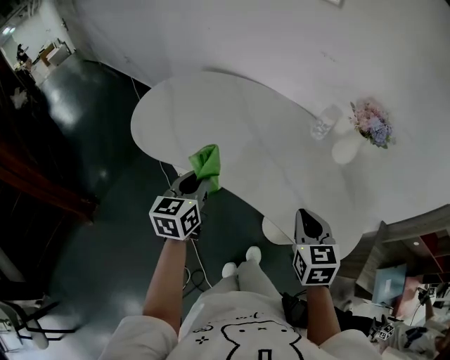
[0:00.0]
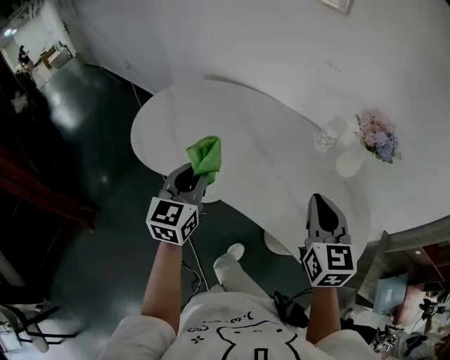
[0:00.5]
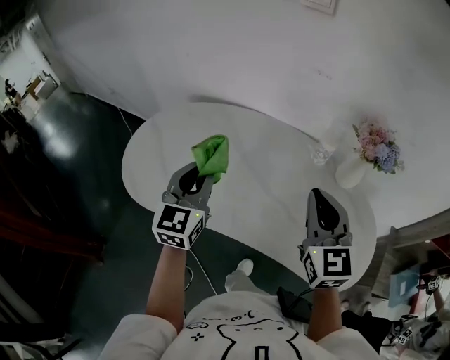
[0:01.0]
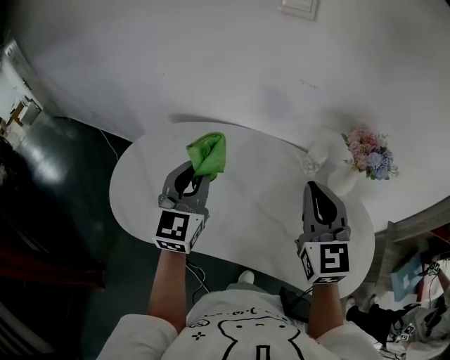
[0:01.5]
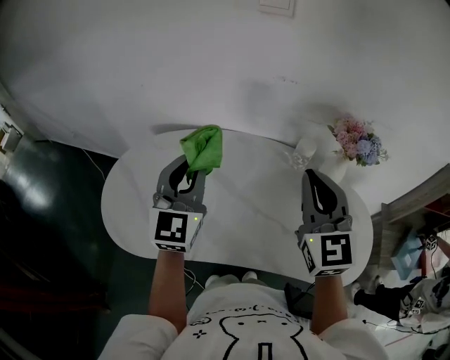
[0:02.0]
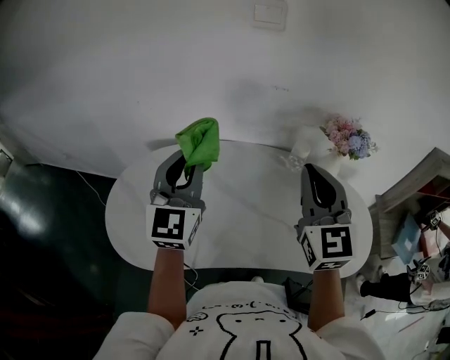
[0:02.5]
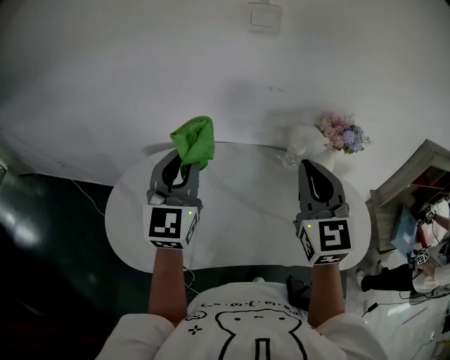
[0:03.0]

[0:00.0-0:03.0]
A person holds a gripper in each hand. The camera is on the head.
0:00.0 to 0:01.5: The two grippers go some 25 cm forward and upward. The right gripper turns by roughly 30 degrees. Meanwhile the left gripper changes its angle by about 30 degrees.
0:01.5 to 0:03.0: The grippers both shift upward by some 10 cm.

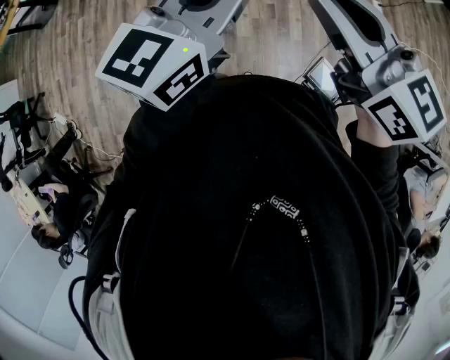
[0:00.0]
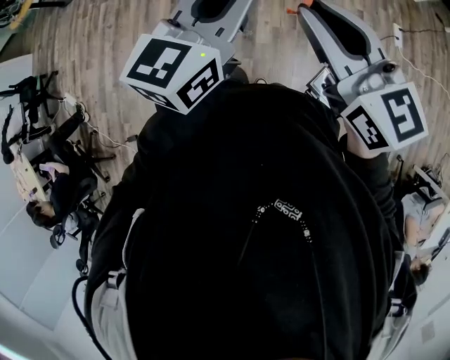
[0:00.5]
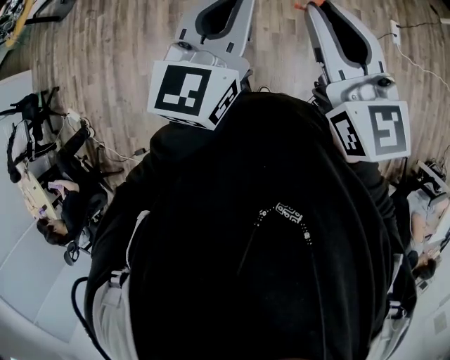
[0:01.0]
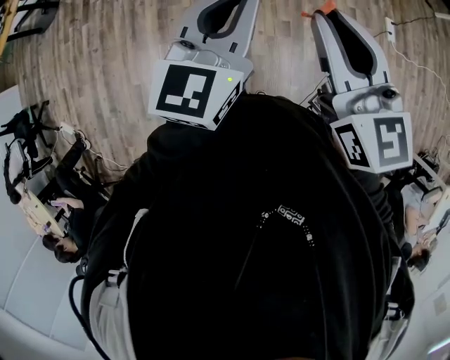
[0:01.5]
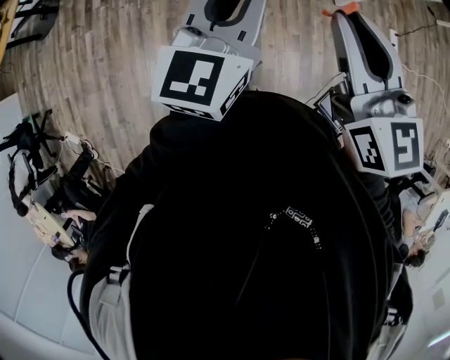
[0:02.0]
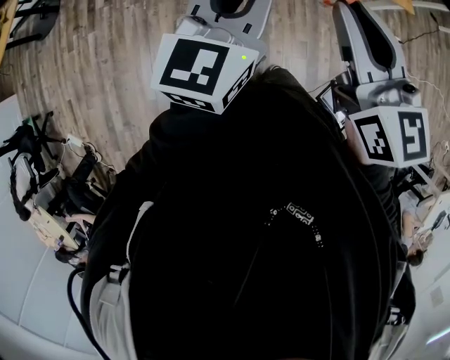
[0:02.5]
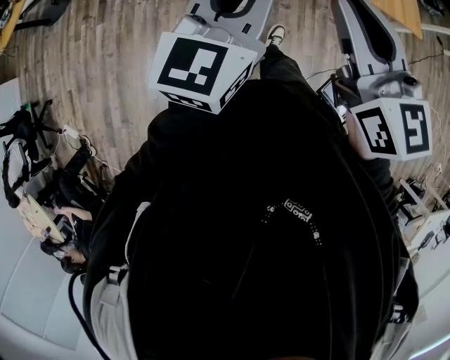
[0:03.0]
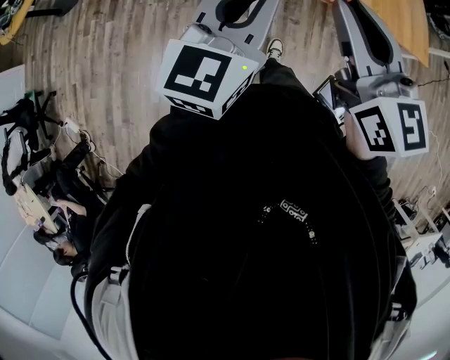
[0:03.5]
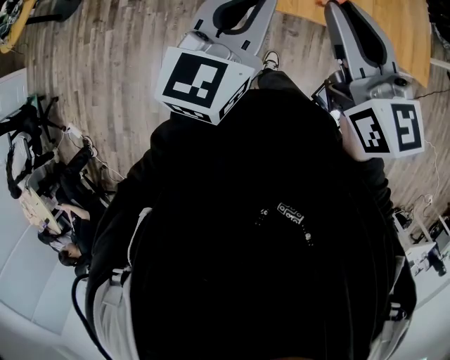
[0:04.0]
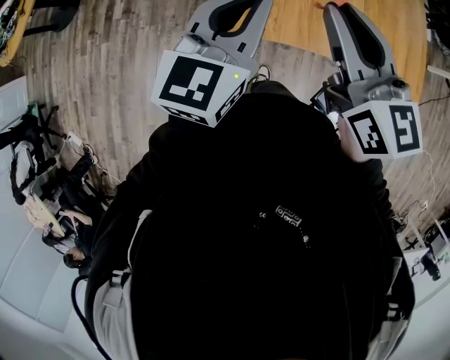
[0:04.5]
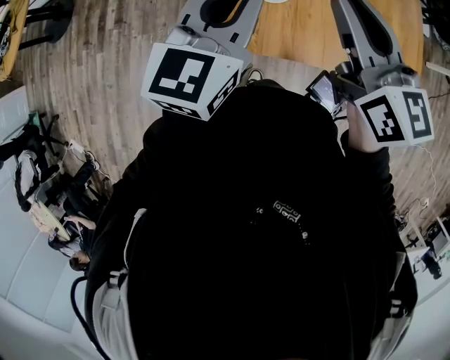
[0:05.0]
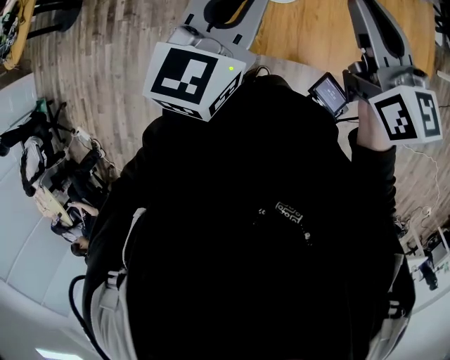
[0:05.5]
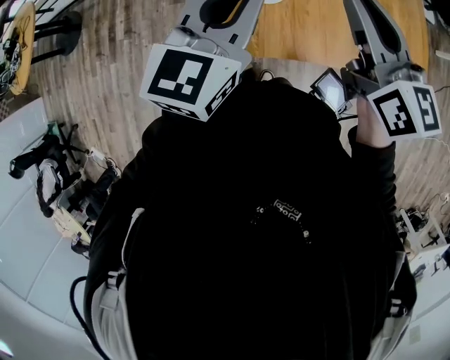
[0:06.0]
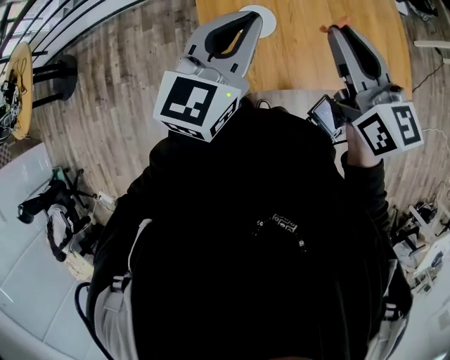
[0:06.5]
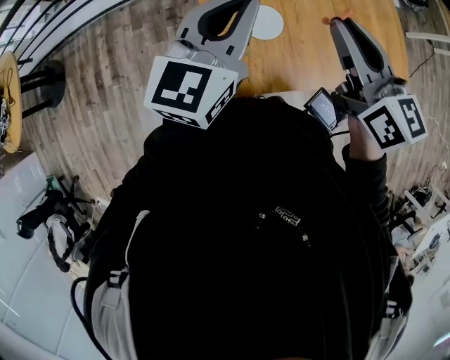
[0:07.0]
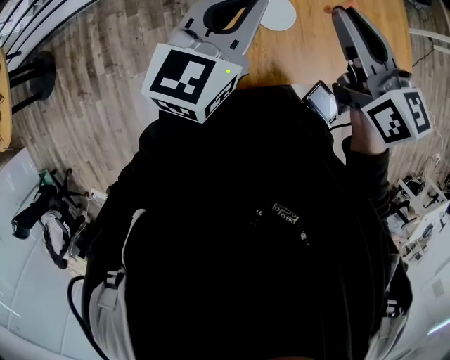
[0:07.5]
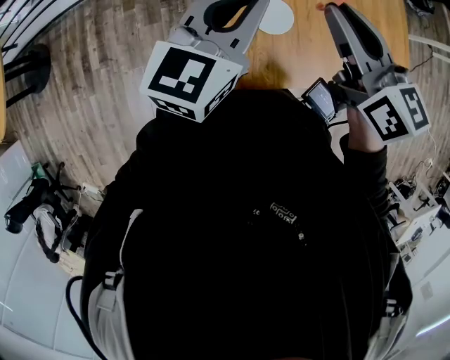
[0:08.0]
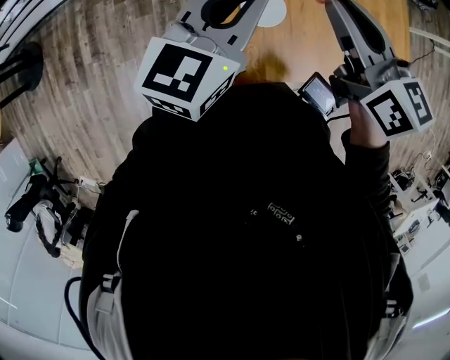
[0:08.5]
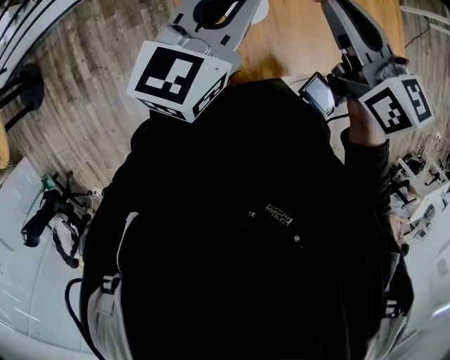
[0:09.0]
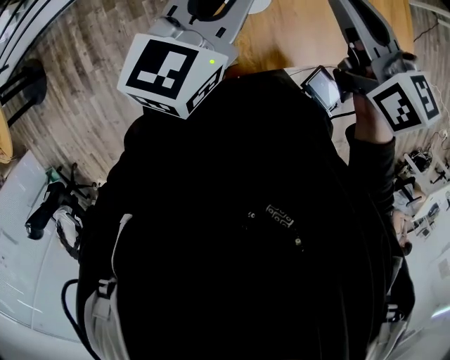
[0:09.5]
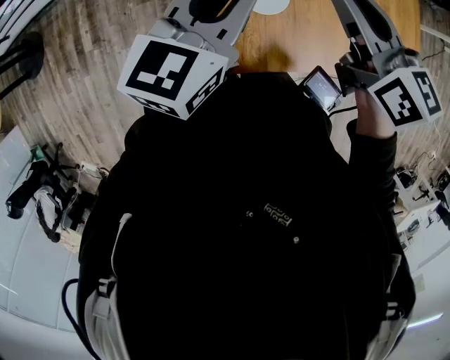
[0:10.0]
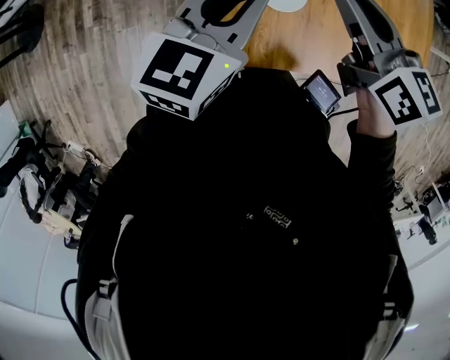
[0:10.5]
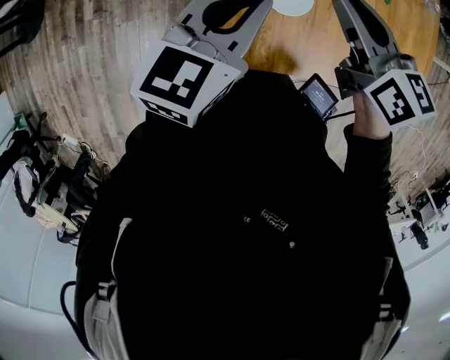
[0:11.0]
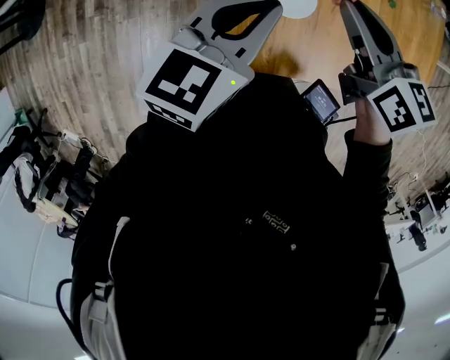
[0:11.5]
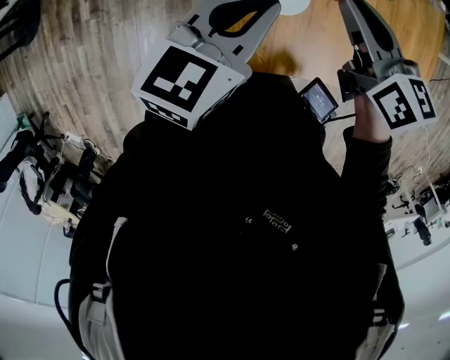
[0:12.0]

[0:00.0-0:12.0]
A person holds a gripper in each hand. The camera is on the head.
0:00.0 to 0:02.0: Both grippers travel together forward and to the left, some 30 cm. The right gripper turns by roughly 20 degrees.
0:02.0 to 0:04.0: Both grippers move forward, roughly 25 cm.
0:04.0 to 0:06.0: The grippers both shift forward and to the right by roughly 25 cm.
0:06.0 to 0:08.0: The left gripper moves forward and to the left, roughly 15 cm; the right gripper goes some 15 cm to the left and forward.
0:08.0 to 0:10.0: The right gripper moves some 5 cm.
0:10.0 to 0:12.0: The two grippers go about 5 cm downward.

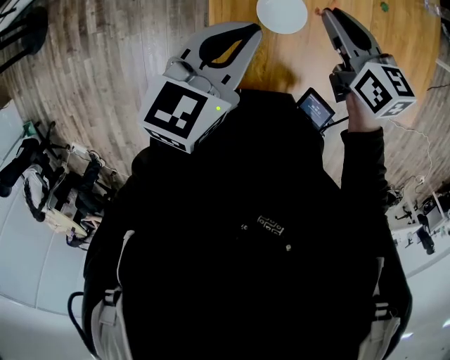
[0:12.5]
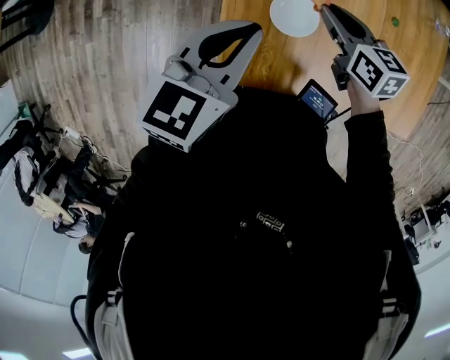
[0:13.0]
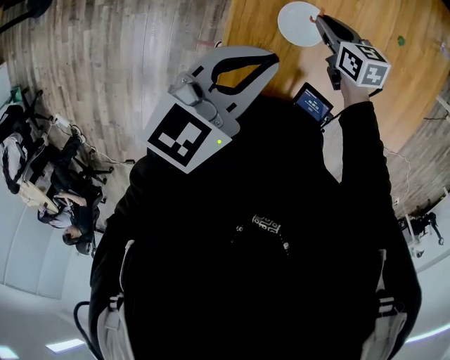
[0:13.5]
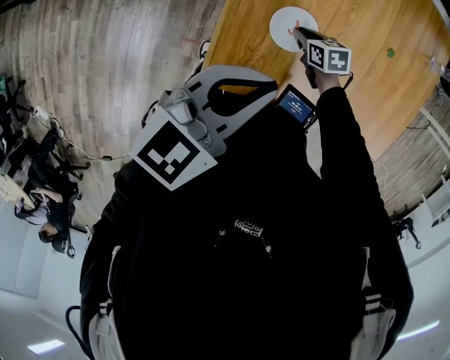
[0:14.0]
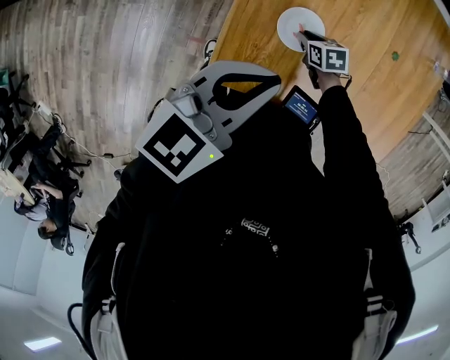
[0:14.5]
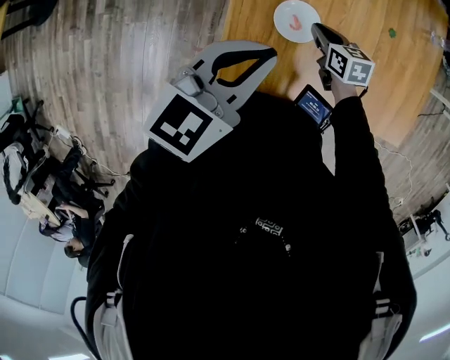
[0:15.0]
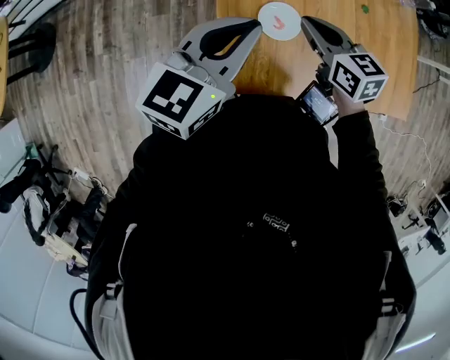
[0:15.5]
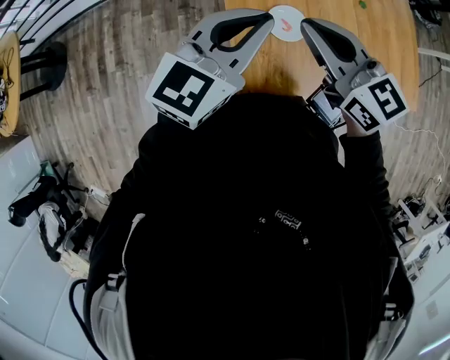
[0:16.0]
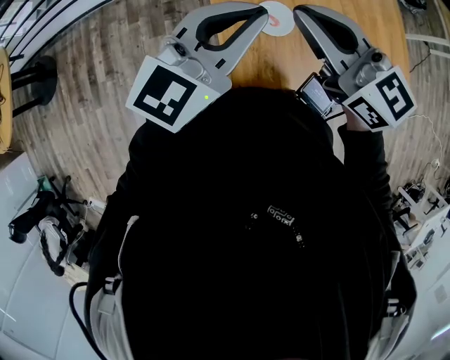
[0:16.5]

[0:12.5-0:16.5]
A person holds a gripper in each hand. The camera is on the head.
0:12.5 to 0:14.5: The left gripper goes some 5 cm backward. Meanwhile the right gripper moves downward, approximately 25 cm, and tips its fingers downward by some 30 degrees.
0:14.5 to 0:16.5: The left gripper is displaced upward by about 10 cm, and changes its angle by approximately 30 degrees, while the right gripper moves upward, approximately 50 cm, and angles its fingers upward, by about 60 degrees.

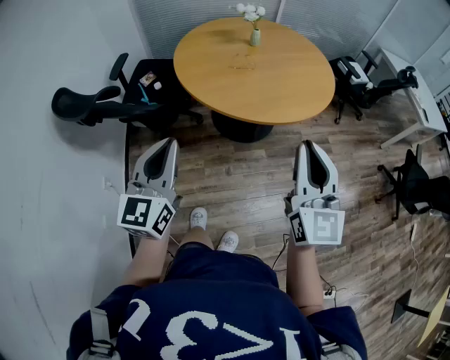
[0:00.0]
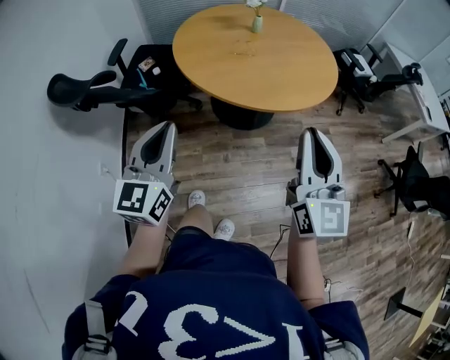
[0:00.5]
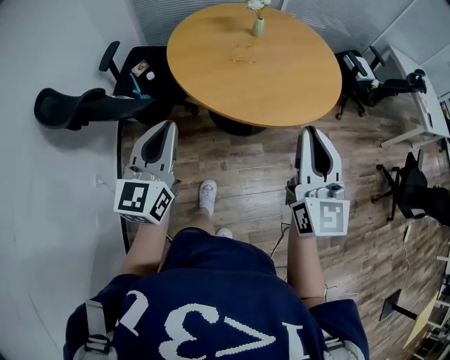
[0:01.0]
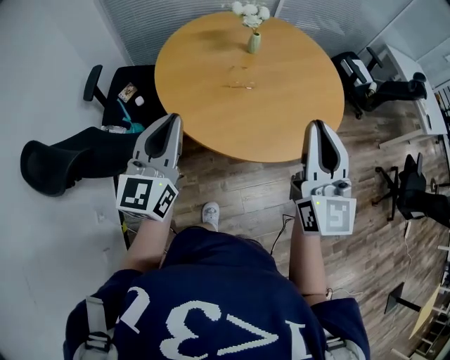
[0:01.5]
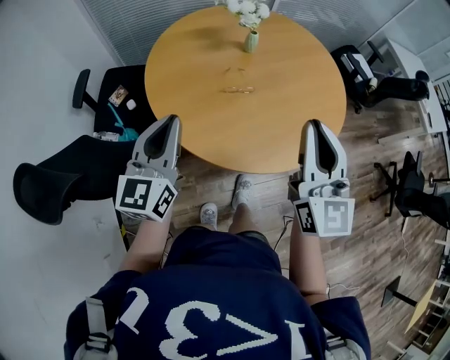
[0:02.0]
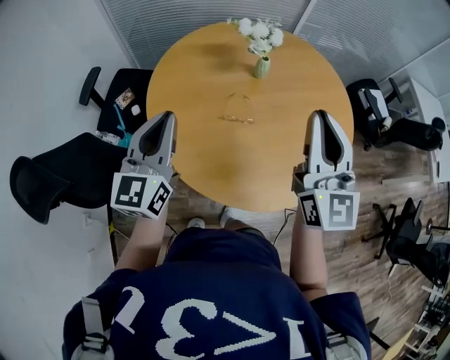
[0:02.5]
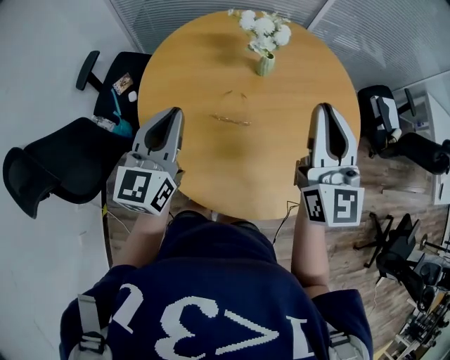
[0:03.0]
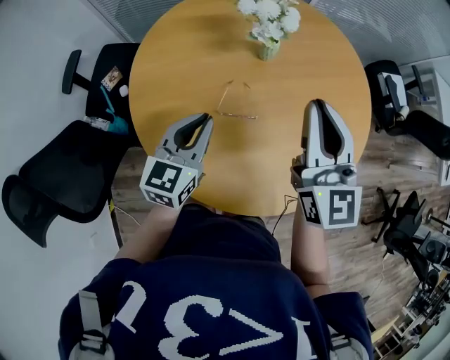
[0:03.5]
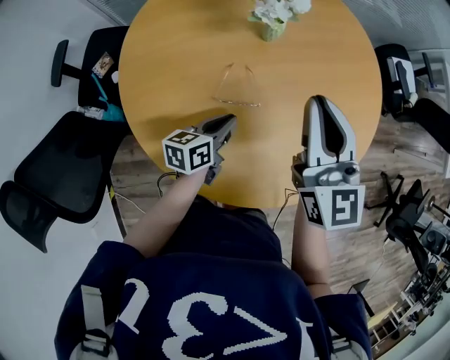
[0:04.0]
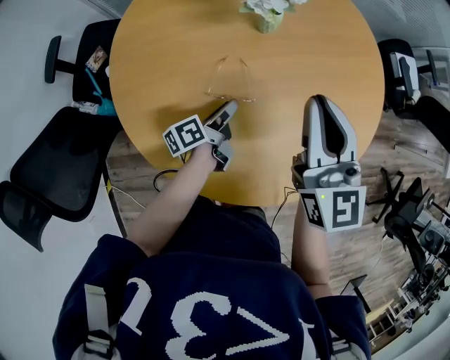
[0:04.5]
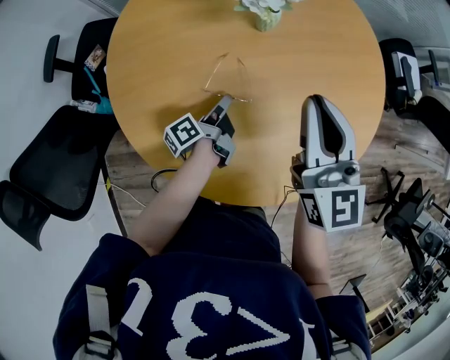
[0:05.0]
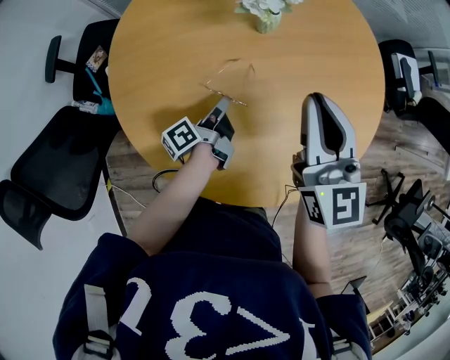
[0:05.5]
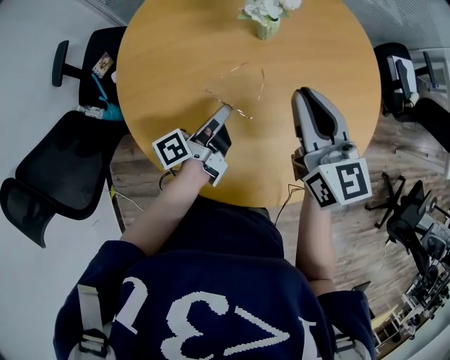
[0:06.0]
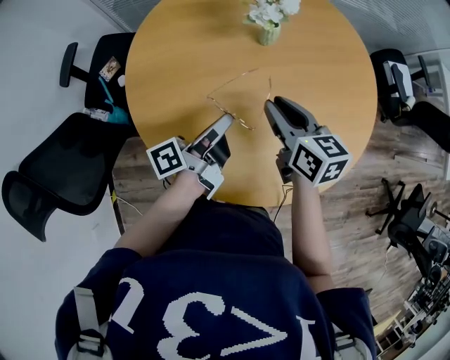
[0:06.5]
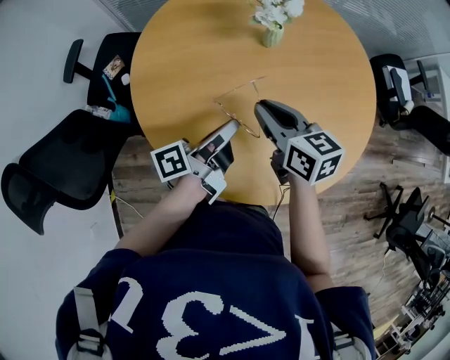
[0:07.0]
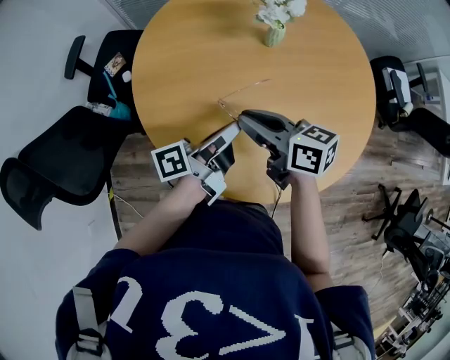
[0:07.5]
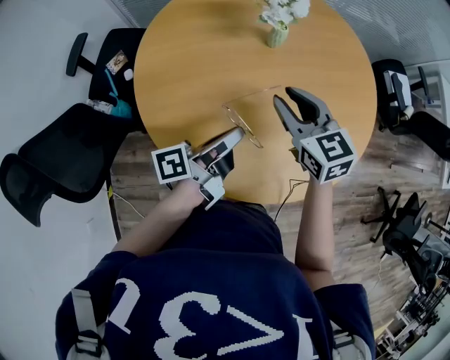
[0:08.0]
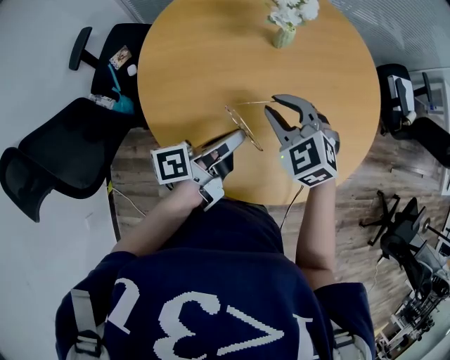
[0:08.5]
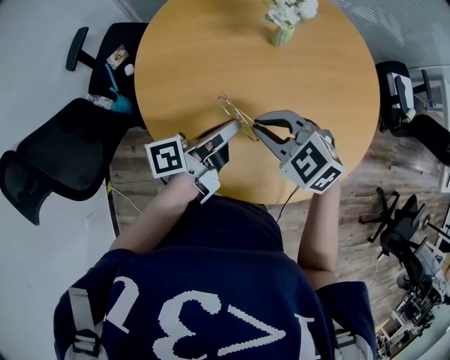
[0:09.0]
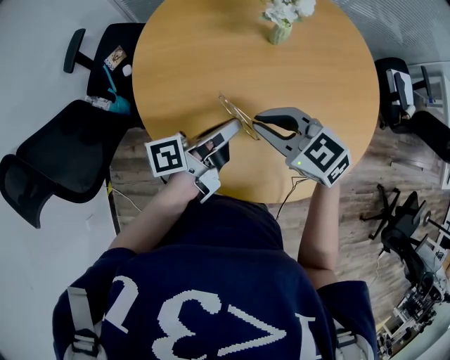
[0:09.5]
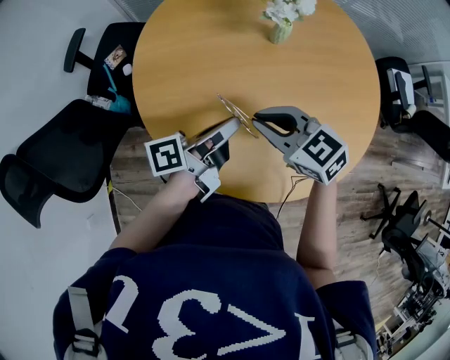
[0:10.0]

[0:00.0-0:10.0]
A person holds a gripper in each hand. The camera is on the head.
0:00.0 to 0:02.0: The two grippers go roughly 35 cm forward.
0:02.0 to 0:04.0: The left gripper heads downward, forward and to the right, covering about 40 cm, and changes its angle by some 50 degrees, while the right gripper goes approximately 30 cm forward and downward.
0:04.0 to 0:06.0: The left gripper shifts by about 5 cm, rotates approximately 50 degrees, and opens, then closes again.
0:06.0 to 0:08.0: The left gripper travels upward and backward by about 10 cm, while the right gripper rotates roughly 20 degrees, and opens its fingers.
0:08.0 to 0:10.0: The right gripper is displaced backward and to the left by approximately 10 cm, rotates roughly 30 degrees, and closes up.
